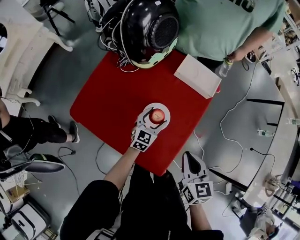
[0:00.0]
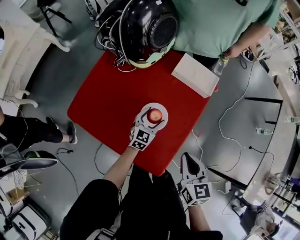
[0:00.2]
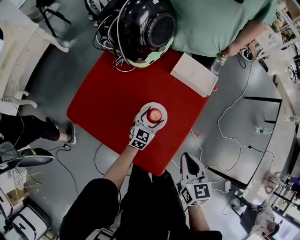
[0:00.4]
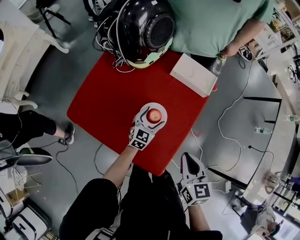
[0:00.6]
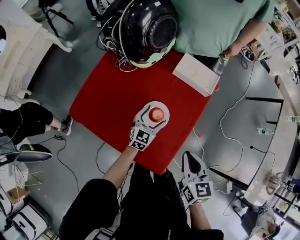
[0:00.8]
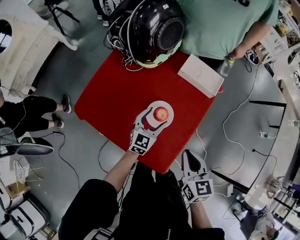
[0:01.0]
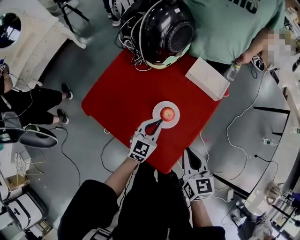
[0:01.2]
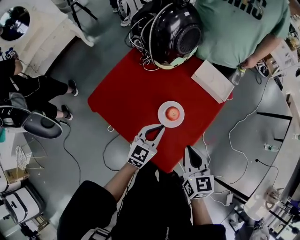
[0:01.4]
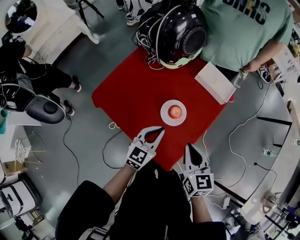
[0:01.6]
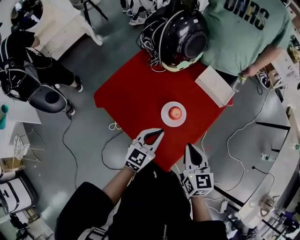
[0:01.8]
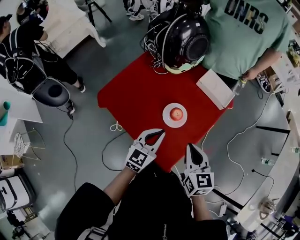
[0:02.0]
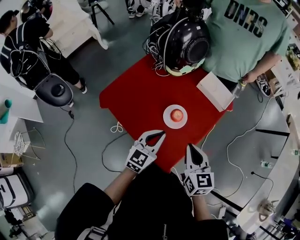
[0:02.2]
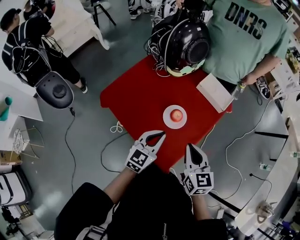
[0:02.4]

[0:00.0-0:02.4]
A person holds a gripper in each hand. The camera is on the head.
0:00.0 to 0:01.2: The left gripper goes about 10 cm upward and backward, and closes.
0:01.2 to 0:02.4: The left gripper travels backward and upward by approximately 15 cm. Meanwhile the right gripper goes about 5 cm upward.

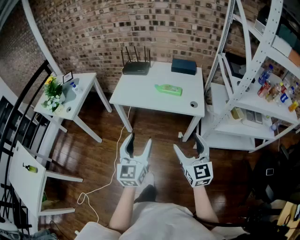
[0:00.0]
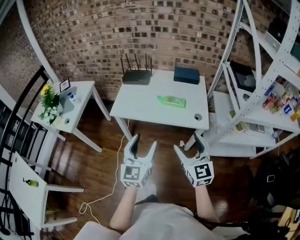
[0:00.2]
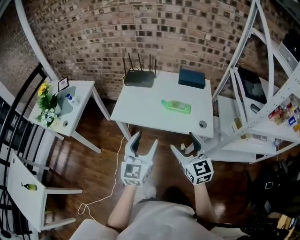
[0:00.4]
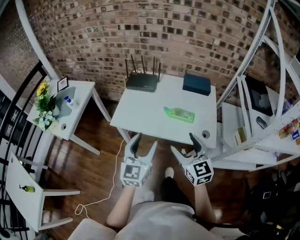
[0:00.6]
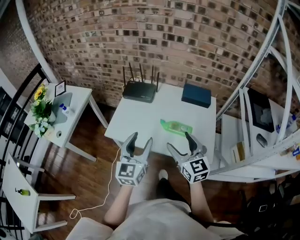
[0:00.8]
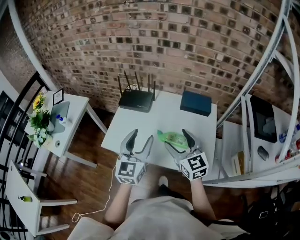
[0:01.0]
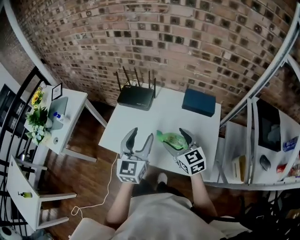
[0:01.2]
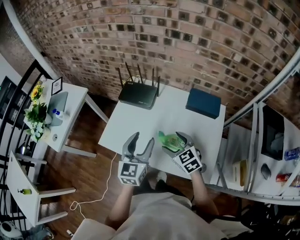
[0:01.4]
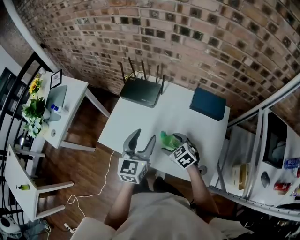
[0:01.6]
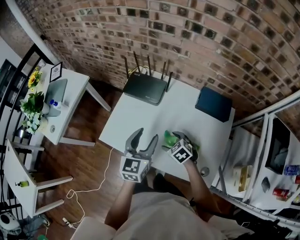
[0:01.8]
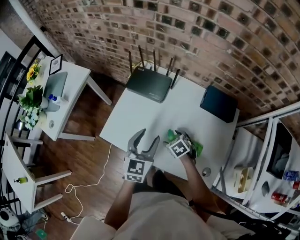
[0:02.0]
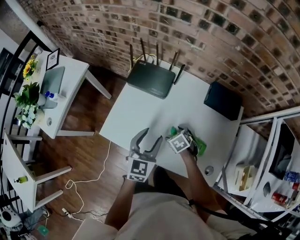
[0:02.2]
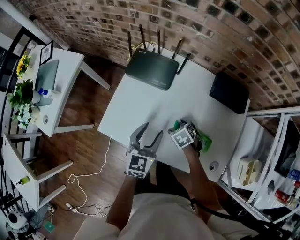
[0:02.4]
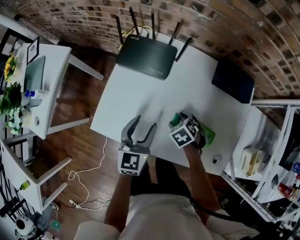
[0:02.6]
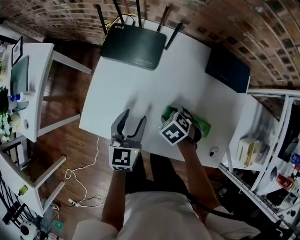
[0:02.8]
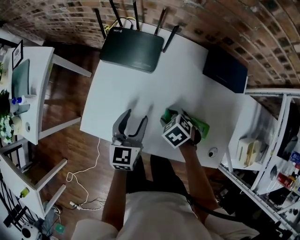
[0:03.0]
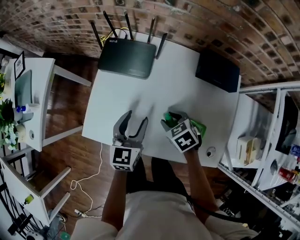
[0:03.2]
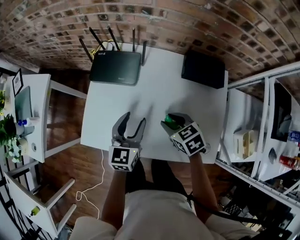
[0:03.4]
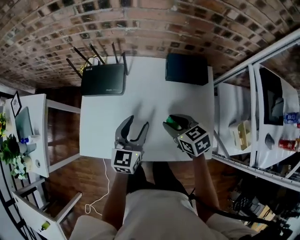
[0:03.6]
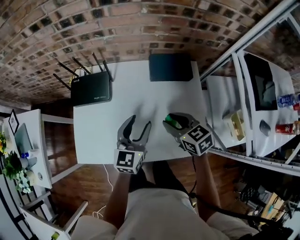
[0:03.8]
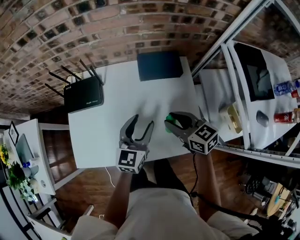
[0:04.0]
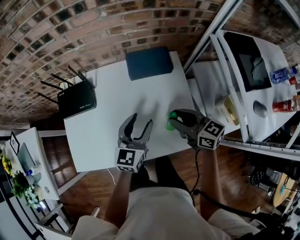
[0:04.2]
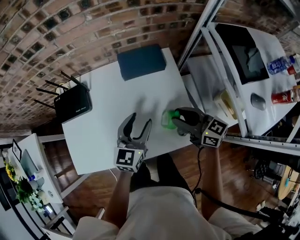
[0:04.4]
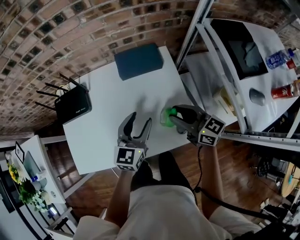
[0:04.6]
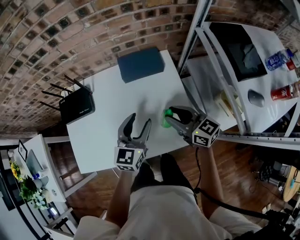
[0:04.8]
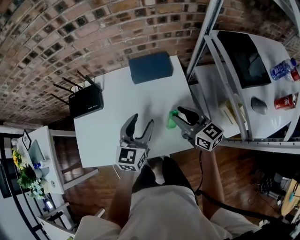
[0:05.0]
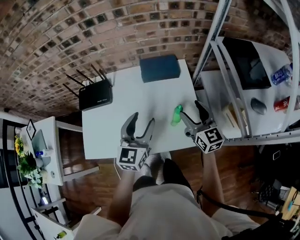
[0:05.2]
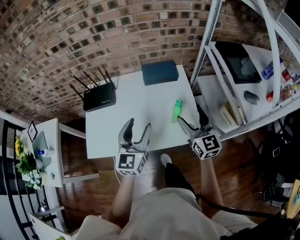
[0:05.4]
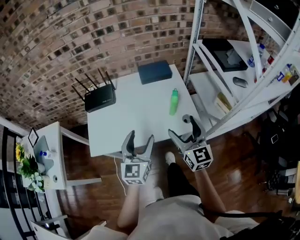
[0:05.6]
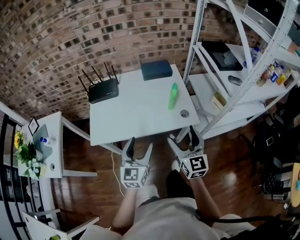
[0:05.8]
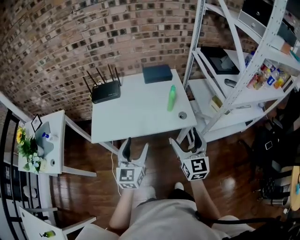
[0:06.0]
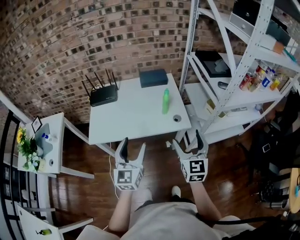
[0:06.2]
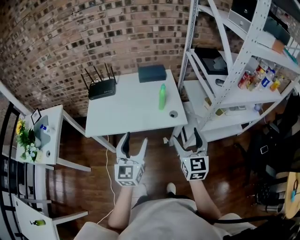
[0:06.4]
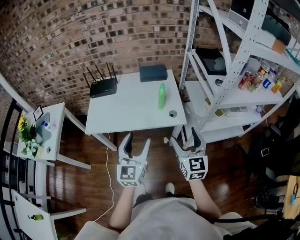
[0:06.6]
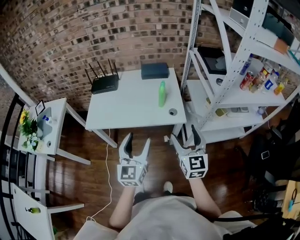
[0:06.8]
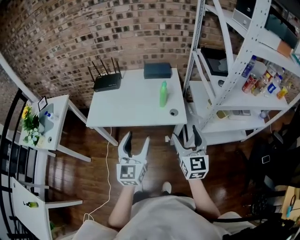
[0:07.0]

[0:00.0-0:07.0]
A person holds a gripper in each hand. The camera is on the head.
0:00.0 to 0:01.4: The pair of grippers is taken forward, approximately 50 cm. The right gripper tips its fingers downward by some 30 degrees.
0:01.4 to 0:02.8: Both grippers travel together downward, about 20 cm. The right gripper points its fingers roughly 40 degrees further downward, and closes its fingers.
0:02.8 to 0:04.2: The right gripper changes place by some 35 cm, and points its fingers roughly 60 degrees further upward, while the left gripper shifts by roughly 30 cm, and changes its angle by roughly 40 degrees.
0:04.2 to 0:05.6: The right gripper moves backward and upward, roughly 25 cm, changes its angle by approximately 40 degrees, and opens. The left gripper goes approximately 25 cm backward.
0:05.6 to 0:07.0: Both grippers move backward and to the right, roughly 20 cm.

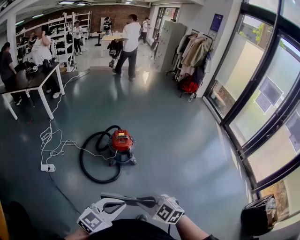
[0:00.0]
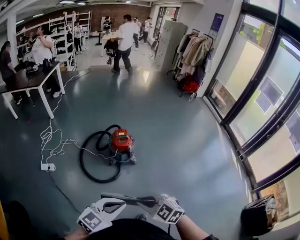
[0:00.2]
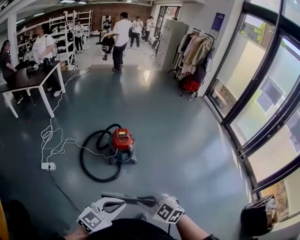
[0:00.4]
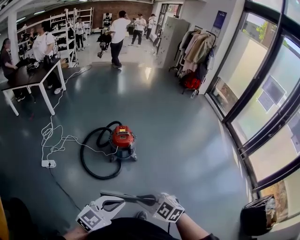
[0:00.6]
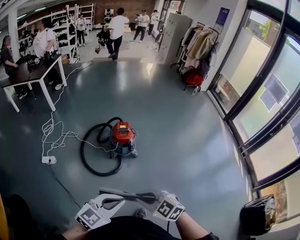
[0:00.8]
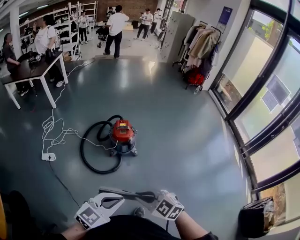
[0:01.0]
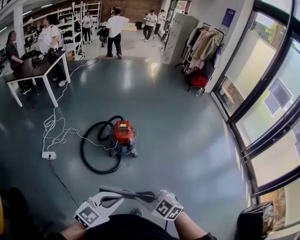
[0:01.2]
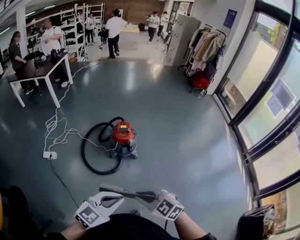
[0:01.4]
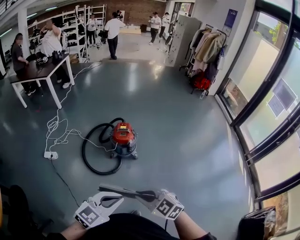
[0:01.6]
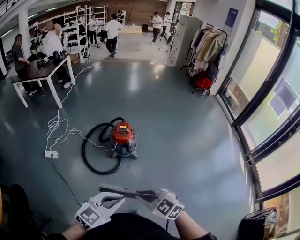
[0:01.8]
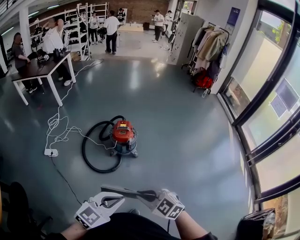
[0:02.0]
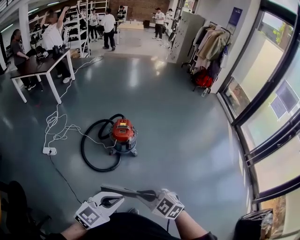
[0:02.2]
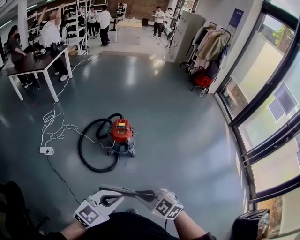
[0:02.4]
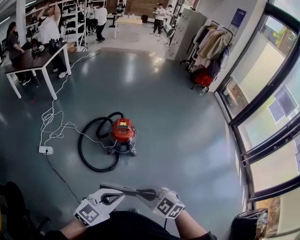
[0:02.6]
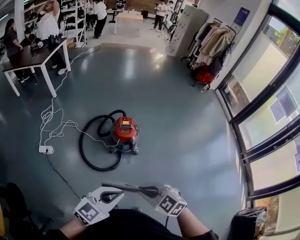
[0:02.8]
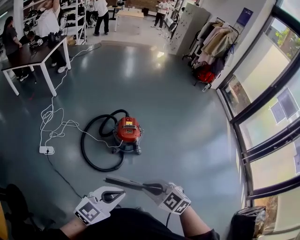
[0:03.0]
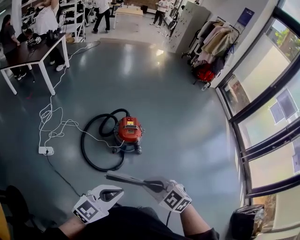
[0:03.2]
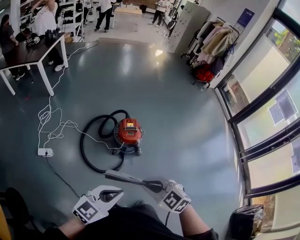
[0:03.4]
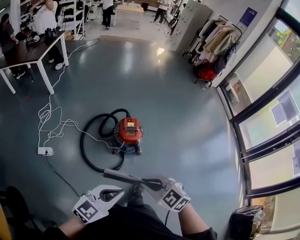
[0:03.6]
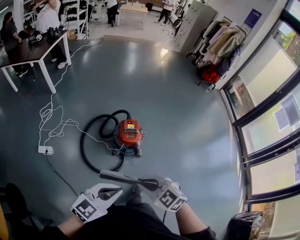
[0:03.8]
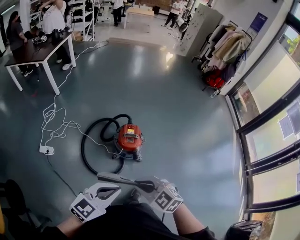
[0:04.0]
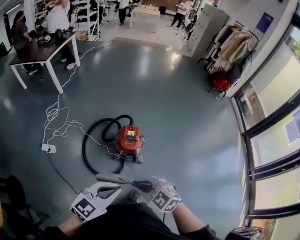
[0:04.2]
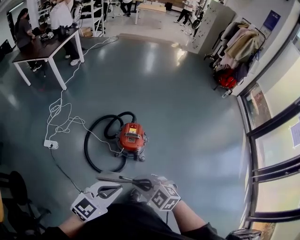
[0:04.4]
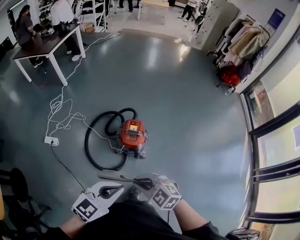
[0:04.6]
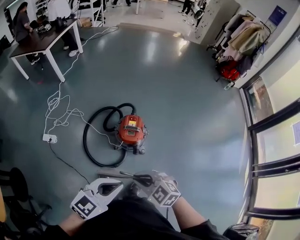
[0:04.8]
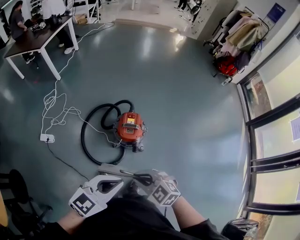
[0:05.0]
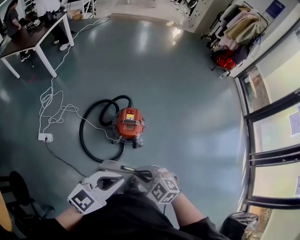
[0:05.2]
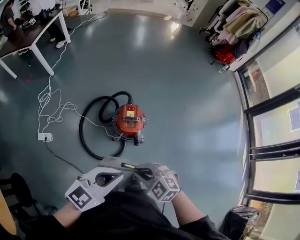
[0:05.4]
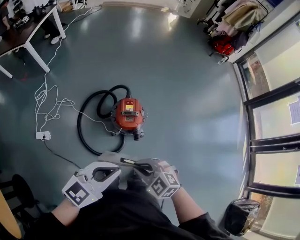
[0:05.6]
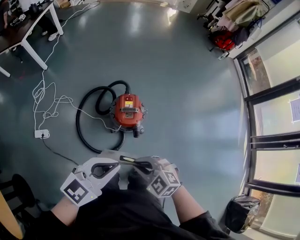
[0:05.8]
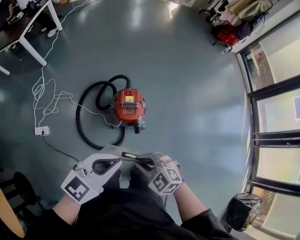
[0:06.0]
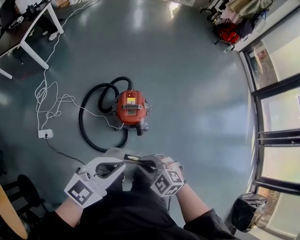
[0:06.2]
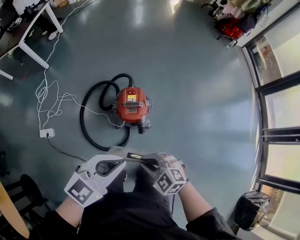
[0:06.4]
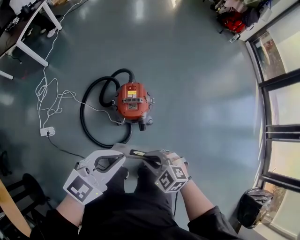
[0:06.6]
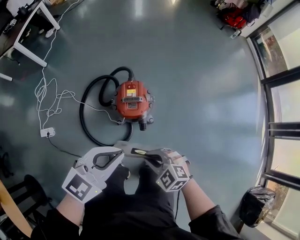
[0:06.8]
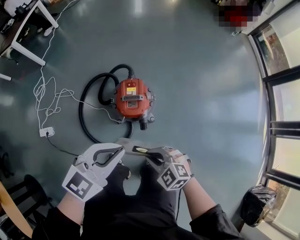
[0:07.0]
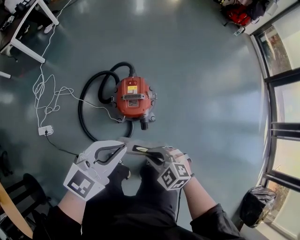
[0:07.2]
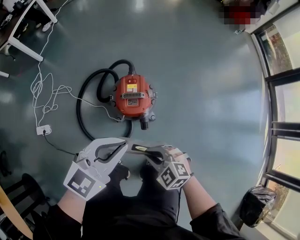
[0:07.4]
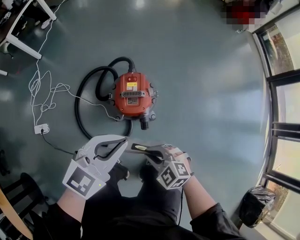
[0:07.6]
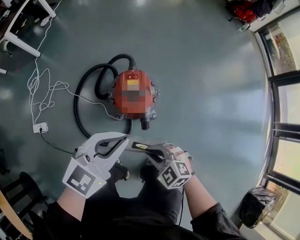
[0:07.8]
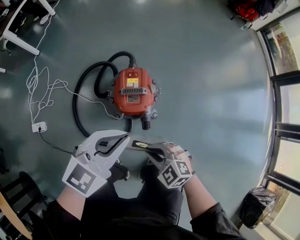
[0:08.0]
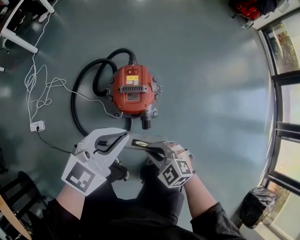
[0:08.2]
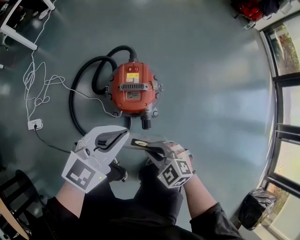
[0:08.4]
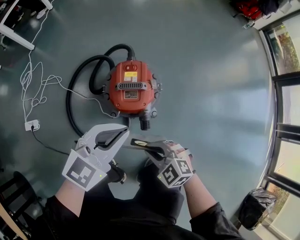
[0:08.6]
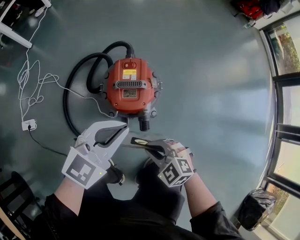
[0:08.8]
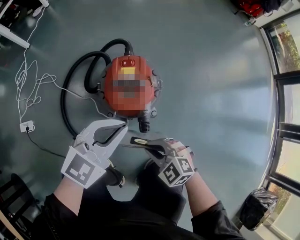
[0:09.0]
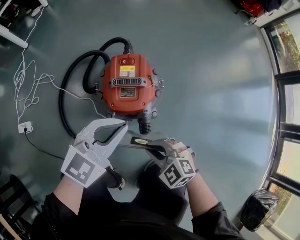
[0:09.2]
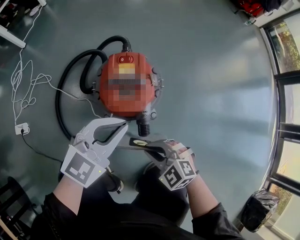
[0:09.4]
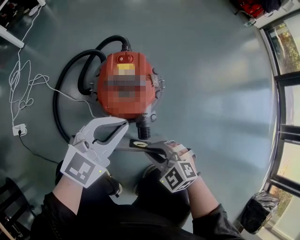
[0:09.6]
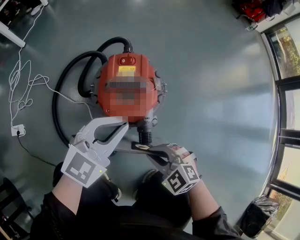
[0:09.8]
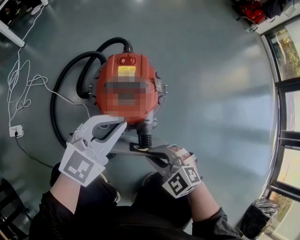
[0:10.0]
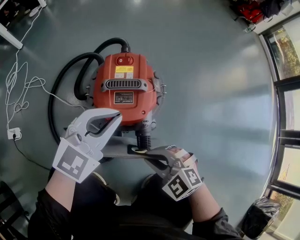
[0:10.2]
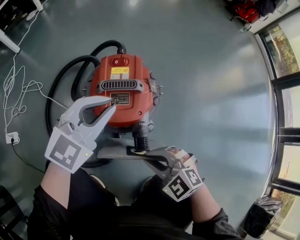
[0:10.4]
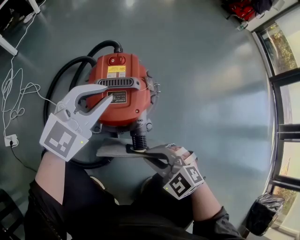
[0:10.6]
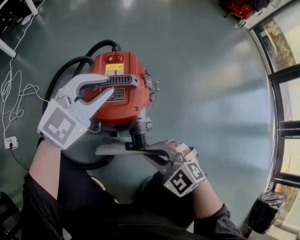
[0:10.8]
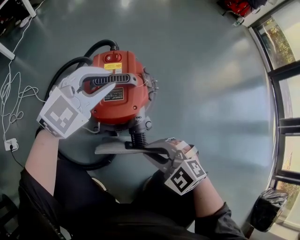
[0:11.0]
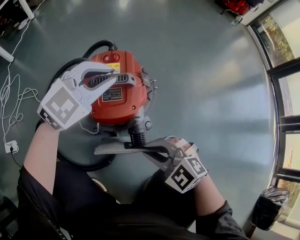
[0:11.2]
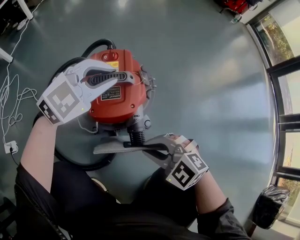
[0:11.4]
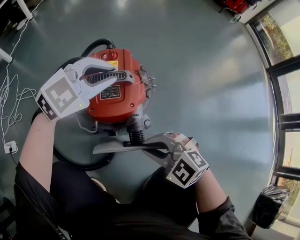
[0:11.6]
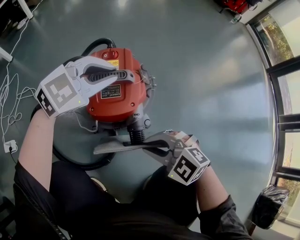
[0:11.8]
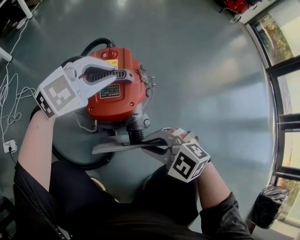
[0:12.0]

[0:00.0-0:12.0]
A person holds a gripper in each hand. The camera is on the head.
0:00.0 to 0:01.6: Both grippers move to the right, approximately 10 cm.
0:01.6 to 0:03.0: Both grippers move forward and to the left, approximately 15 cm.
0:03.0 to 0:04.4: The right gripper heads forward, covering approximately 15 cm, while the left gripper heads forward and to the right, covering approximately 20 cm.
0:04.4 to 0:06.0: The right gripper is displaced downward and forward by about 15 cm; the left gripper goes roughly 10 cm forward.
0:06.0 to 0:07.6: The left gripper goes about 15 cm downward and forward, while the right gripper heads downward, covering some 20 cm.
0:07.6 to 0:09.0: The grippers both shift downward by roughly 20 cm.
0:09.0 to 0:10.4: The right gripper is displaced downward by approximately 5 cm; the left gripper goes approximately 15 cm downward and forward.
0:10.4 to 0:12.0: The left gripper changes place by approximately 5 cm, and rotates roughly 20 degrees.

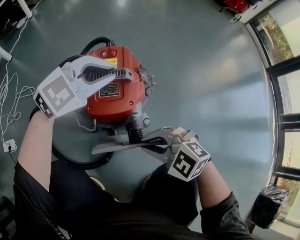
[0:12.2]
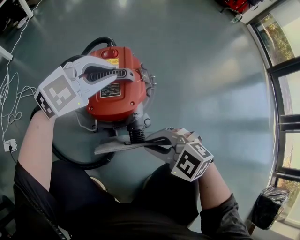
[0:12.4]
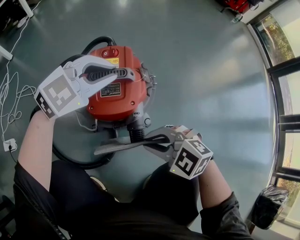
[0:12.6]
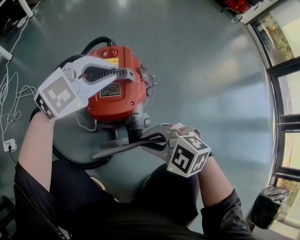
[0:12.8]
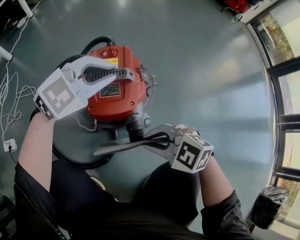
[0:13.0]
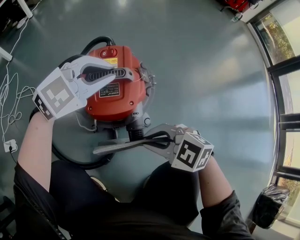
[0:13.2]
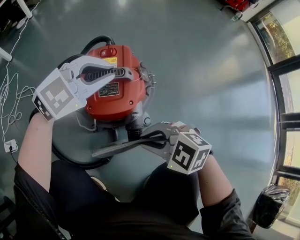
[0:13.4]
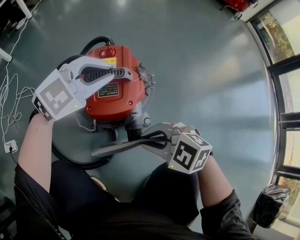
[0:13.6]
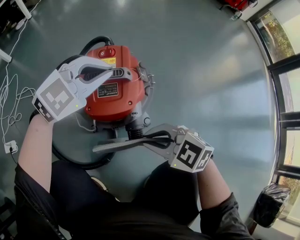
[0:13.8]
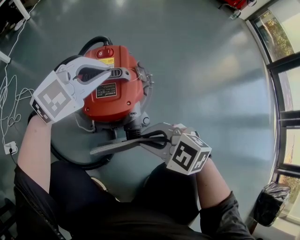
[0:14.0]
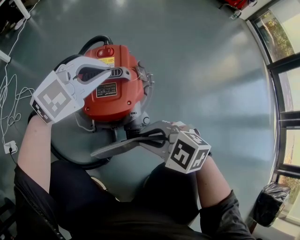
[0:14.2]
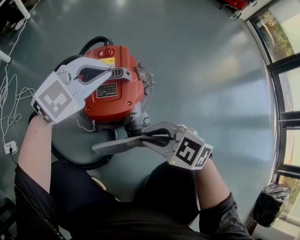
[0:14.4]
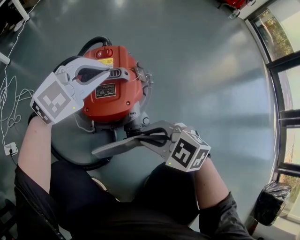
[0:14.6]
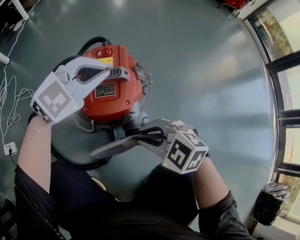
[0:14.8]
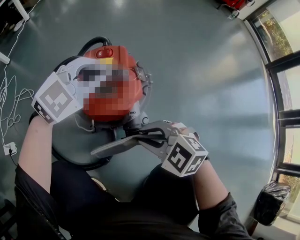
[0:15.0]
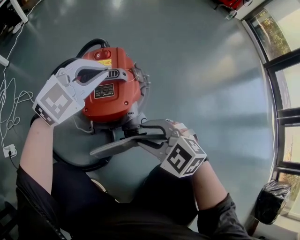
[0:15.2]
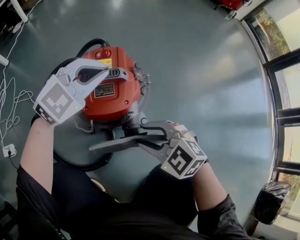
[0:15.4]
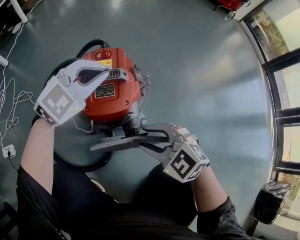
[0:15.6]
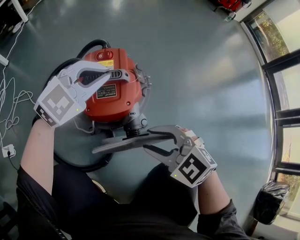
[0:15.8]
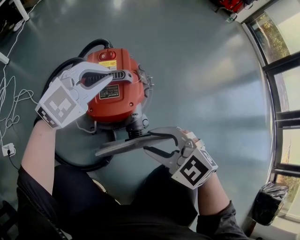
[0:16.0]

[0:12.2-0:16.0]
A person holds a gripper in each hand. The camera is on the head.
0:12.2 to 0:14.8: The grippers stay close to where they were, moving slightly.
0:14.8 to 0:16.0: The right gripper ends up roughly 5 cm from where it was, and opens.
